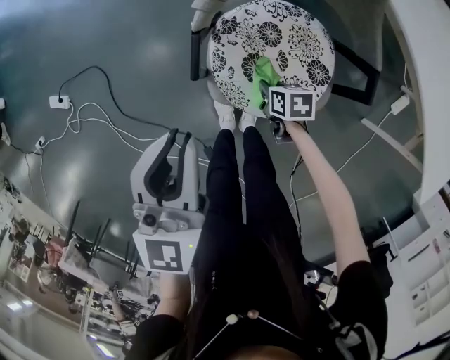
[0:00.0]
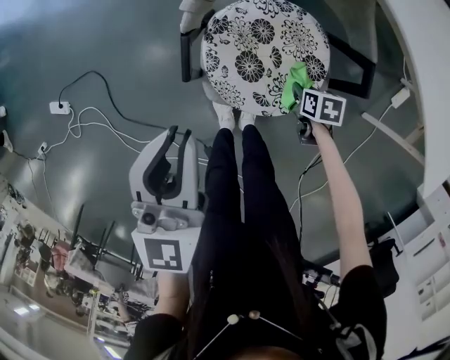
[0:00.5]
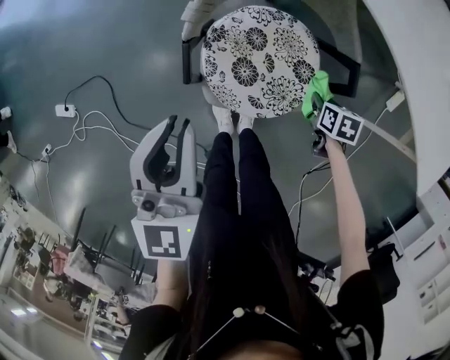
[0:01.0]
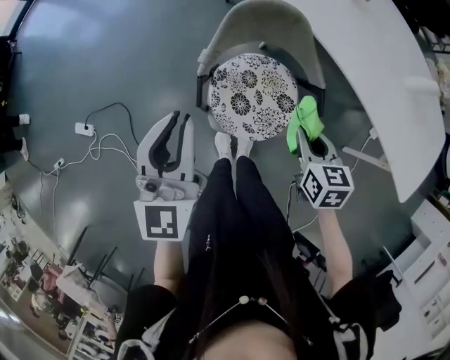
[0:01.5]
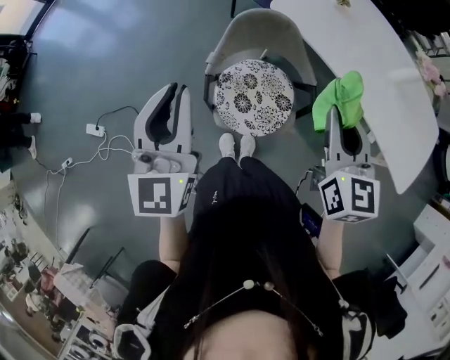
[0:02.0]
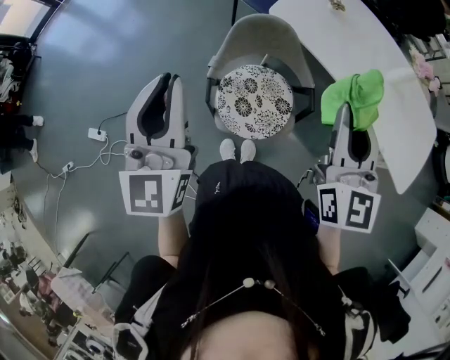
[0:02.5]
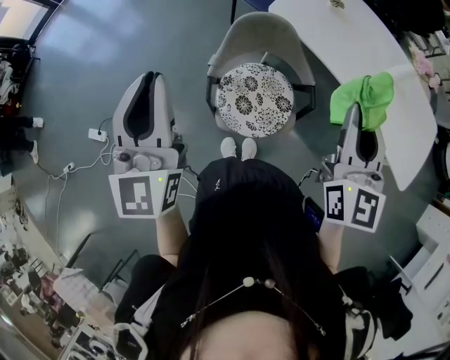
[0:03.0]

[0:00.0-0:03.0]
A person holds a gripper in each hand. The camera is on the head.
0:00.0 to 0:01.5: The left gripper shifts some 20 cm upward; the right gripper travels upward by about 40 cm, and changes its angle by about 30 degrees.
0:01.5 to 0:03.0: The right gripper shifts roughly 30 cm upward, and points its fingers approximately 40 degrees further upward, while the left gripper moves upward, approximately 15 cm.

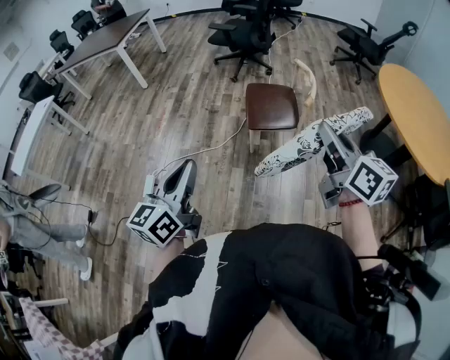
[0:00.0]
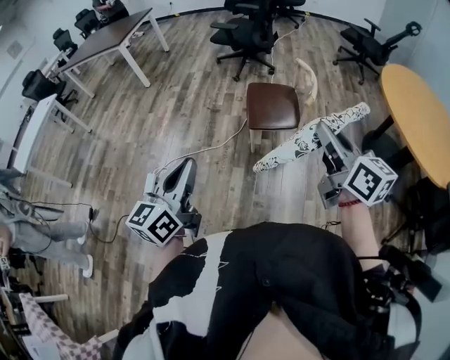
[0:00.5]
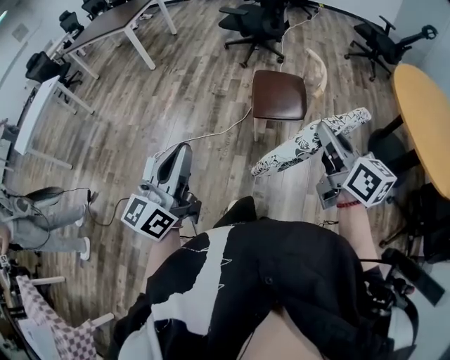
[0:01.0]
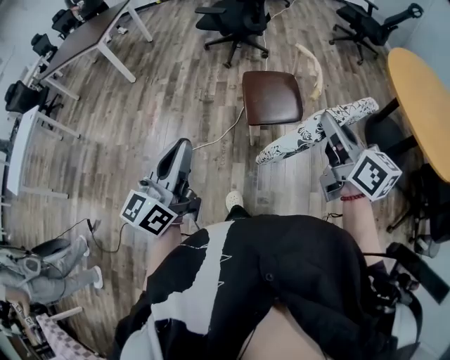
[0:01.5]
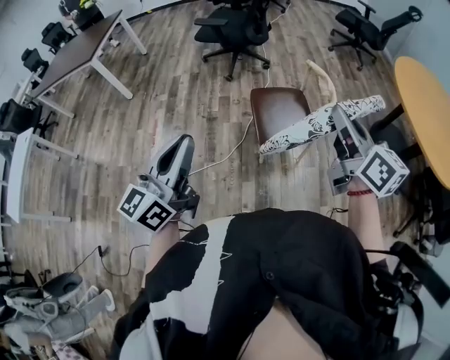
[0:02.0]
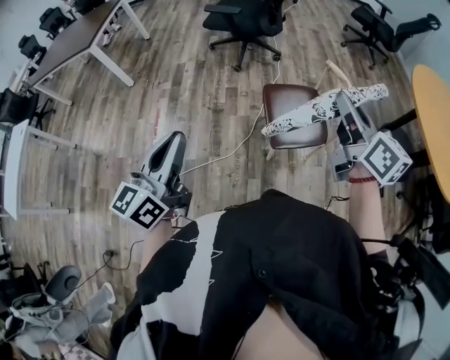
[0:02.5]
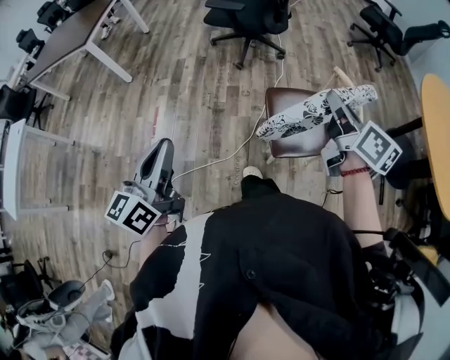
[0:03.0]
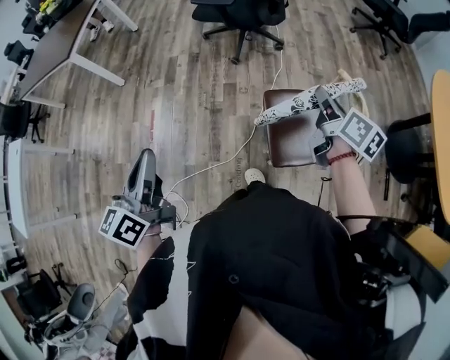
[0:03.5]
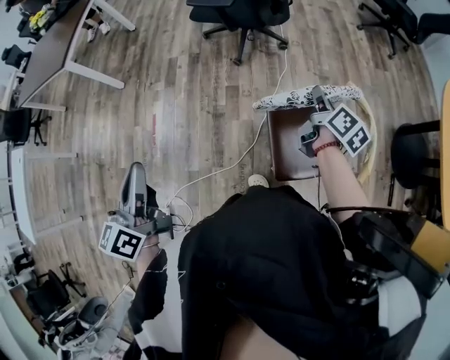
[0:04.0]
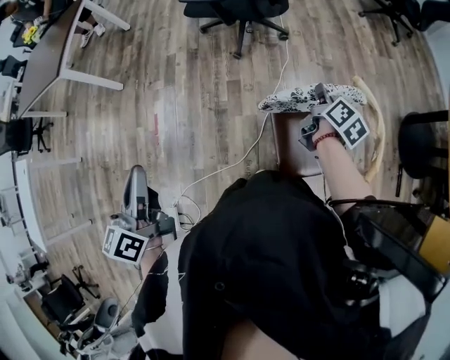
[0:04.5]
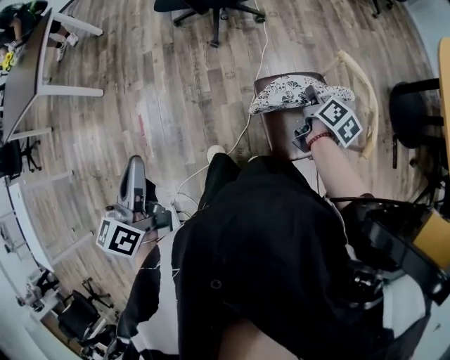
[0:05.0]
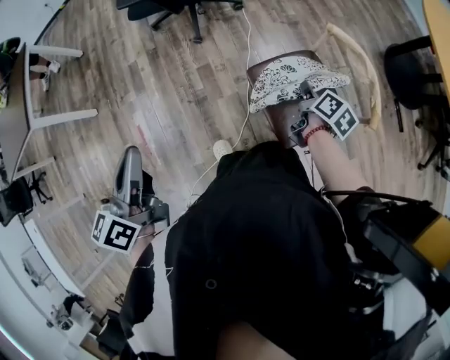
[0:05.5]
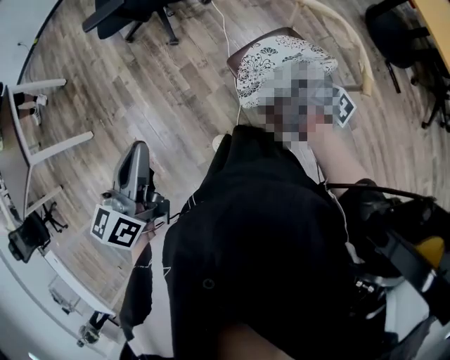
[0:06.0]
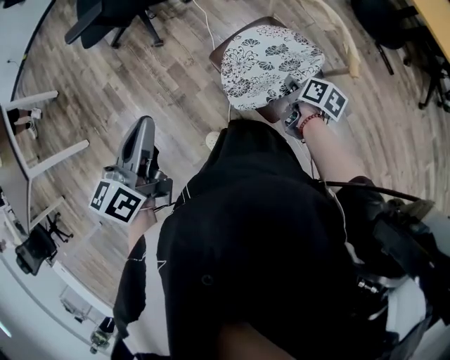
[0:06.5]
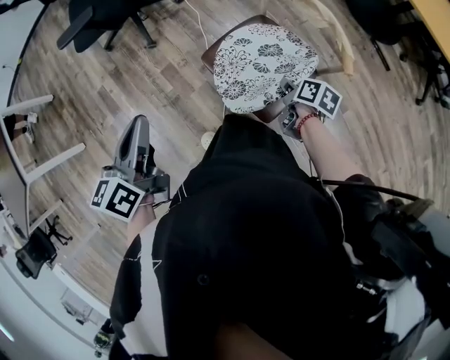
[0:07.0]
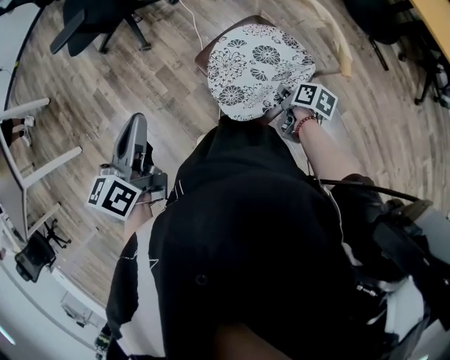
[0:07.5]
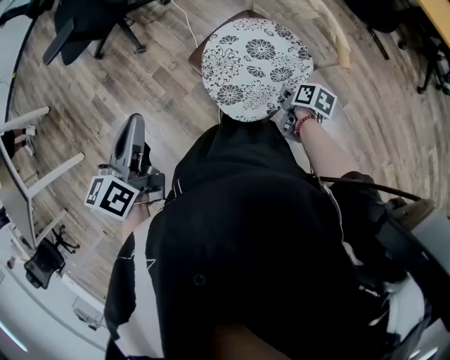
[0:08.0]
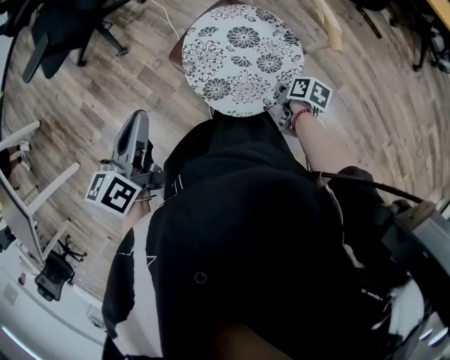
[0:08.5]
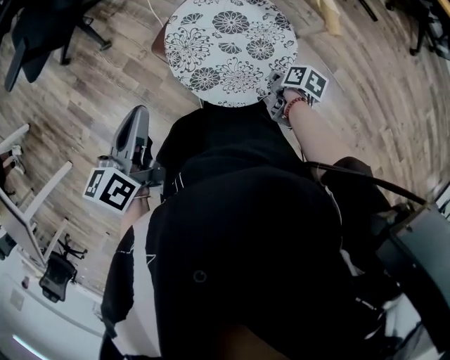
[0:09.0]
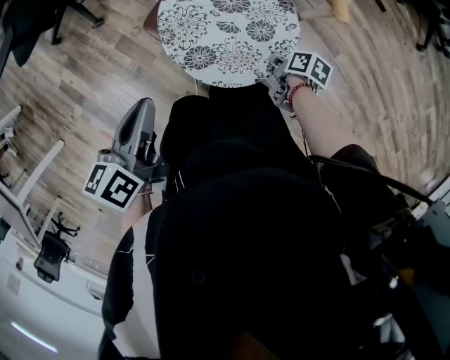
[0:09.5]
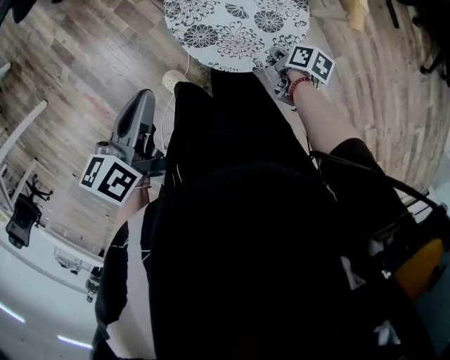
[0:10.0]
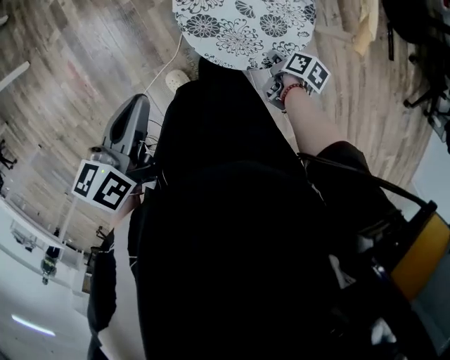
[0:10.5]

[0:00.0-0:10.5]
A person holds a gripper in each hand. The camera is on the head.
0:00.0 to 0:02.0: Both grippers travel together forward, approximately 25 cm.
0:02.0 to 0:04.0: The right gripper goes about 50 cm forward and downward, and changes its angle by roughly 40 degrees; the left gripper heads forward and to the left, covering roughly 35 cm, and rotates about 30 degrees.
0:04.0 to 0:06.5: The left gripper shifts by roughly 25 cm, and changes its angle by about 50 degrees, while the right gripper heads downward, covering about 20 cm, and changes its angle by approximately 40 degrees.
0:06.5 to 0:08.5: The right gripper moves downward, backward and to the right, about 20 cm, while the left gripper moves downward and to the right, about 15 cm.
0:08.5 to 0:10.5: The left gripper shifts about 15 cm backward, and rotates about 20 degrees, while the right gripper changes place by some 5 cm.

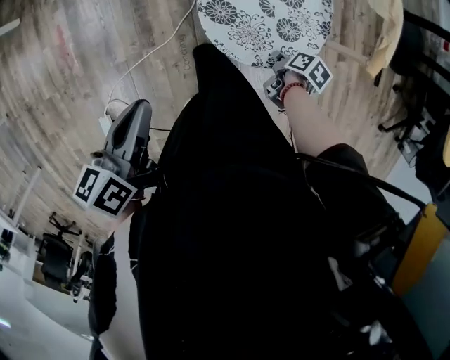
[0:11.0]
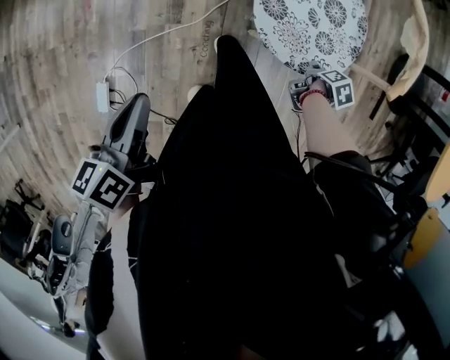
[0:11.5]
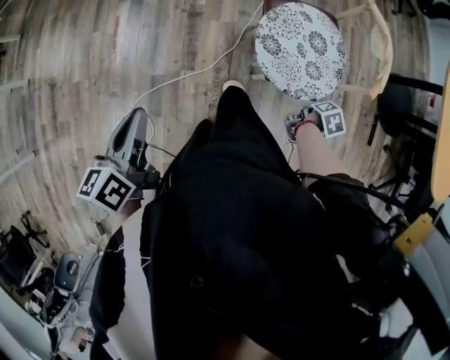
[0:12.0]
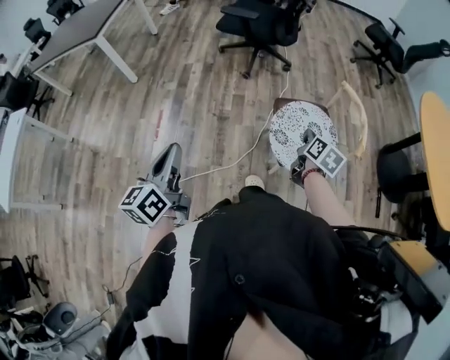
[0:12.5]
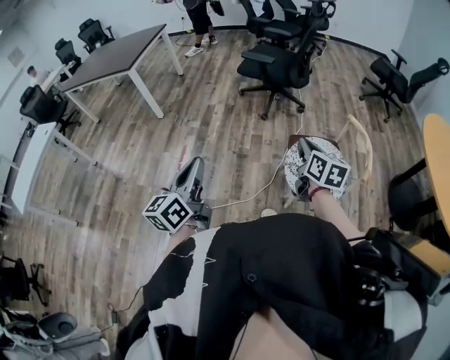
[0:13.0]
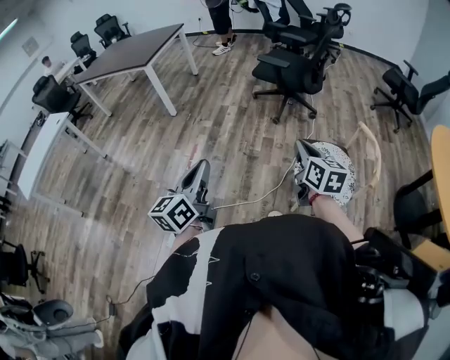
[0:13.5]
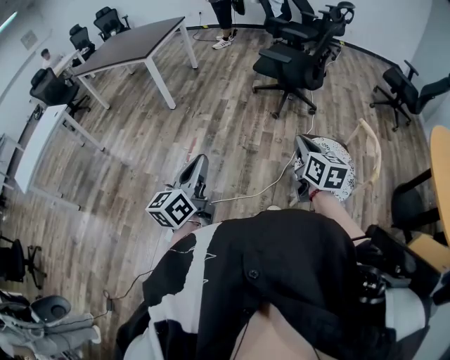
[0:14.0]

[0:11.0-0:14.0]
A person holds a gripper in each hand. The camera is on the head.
0:11.0 to 0:12.5: The left gripper is displaced upward, backward and to the left by roughly 30 cm, and rotates roughly 40 degrees. The right gripper moves upward, approximately 35 cm, points its fingers approximately 40 degrees further upward, and opens and closes again.
0:12.5 to 0:14.0: The left gripper heads backward, covering approximately 5 cm; the right gripper shifts about 25 cm to the left and upward, and swivels about 40 degrees.

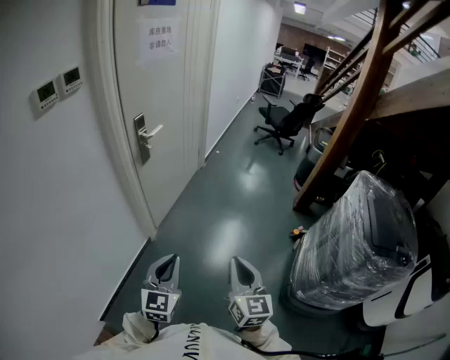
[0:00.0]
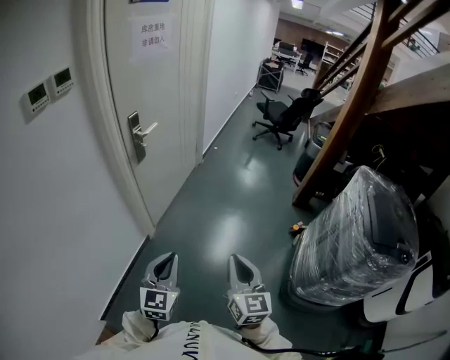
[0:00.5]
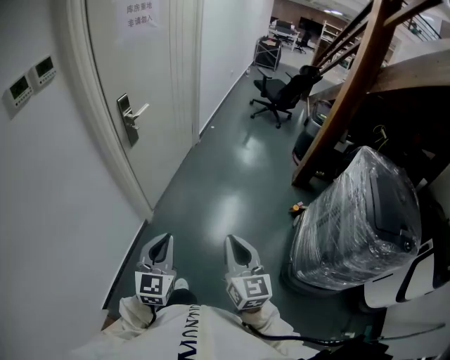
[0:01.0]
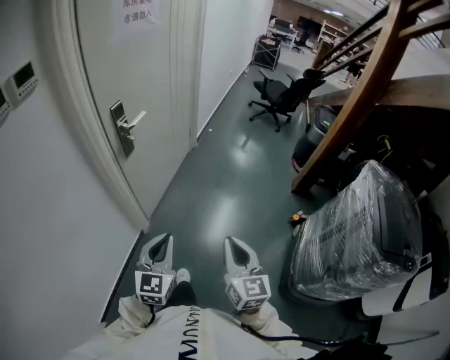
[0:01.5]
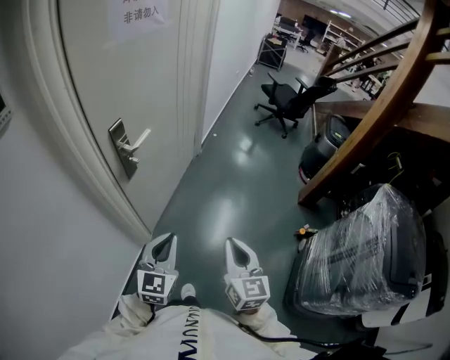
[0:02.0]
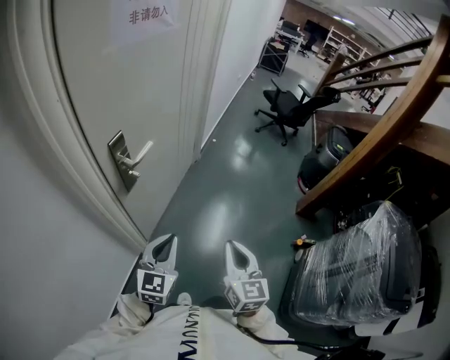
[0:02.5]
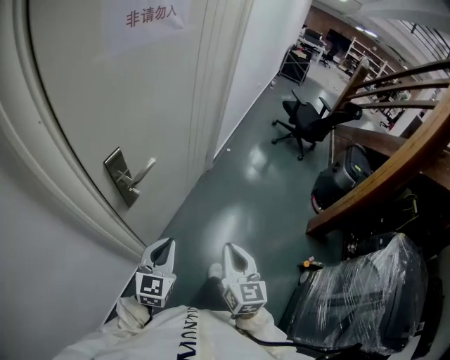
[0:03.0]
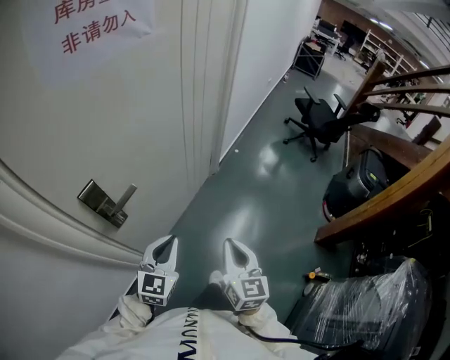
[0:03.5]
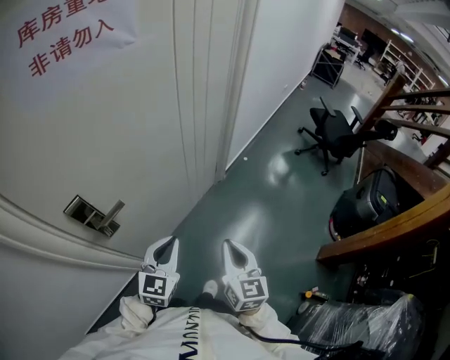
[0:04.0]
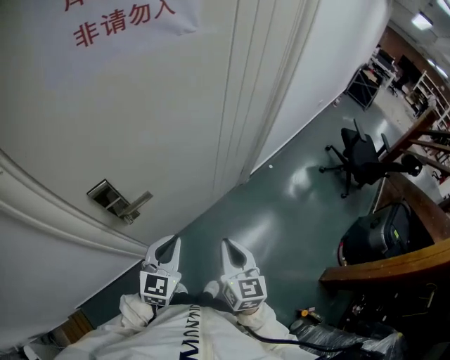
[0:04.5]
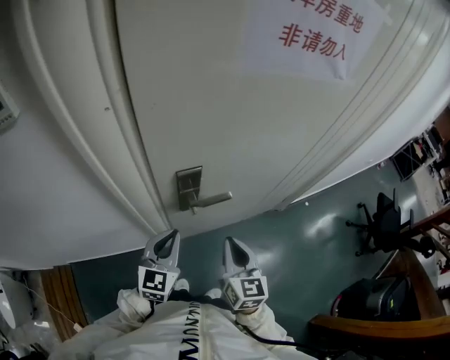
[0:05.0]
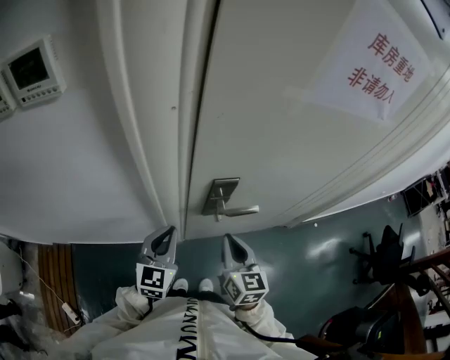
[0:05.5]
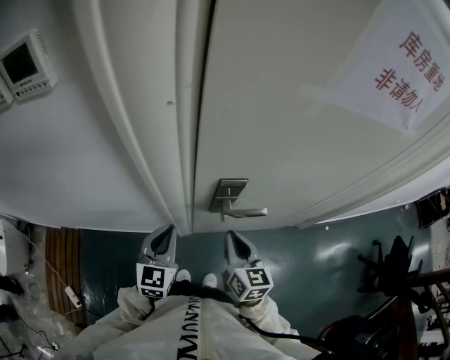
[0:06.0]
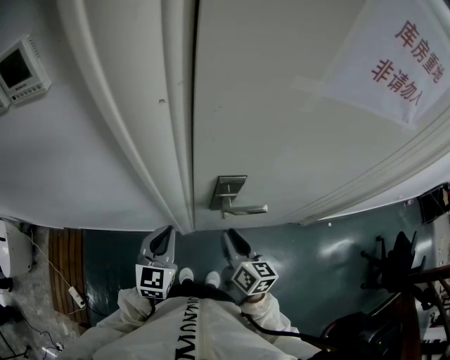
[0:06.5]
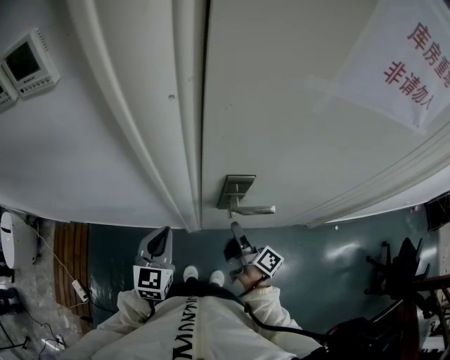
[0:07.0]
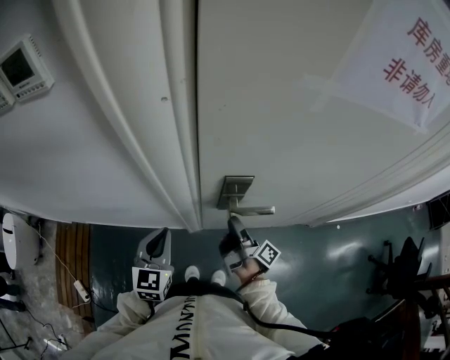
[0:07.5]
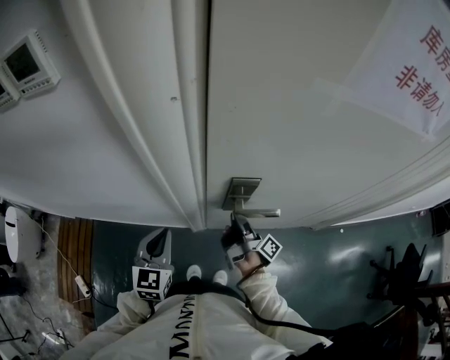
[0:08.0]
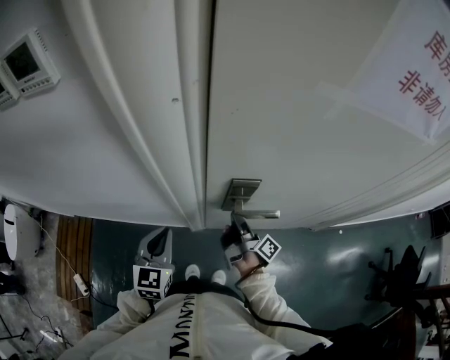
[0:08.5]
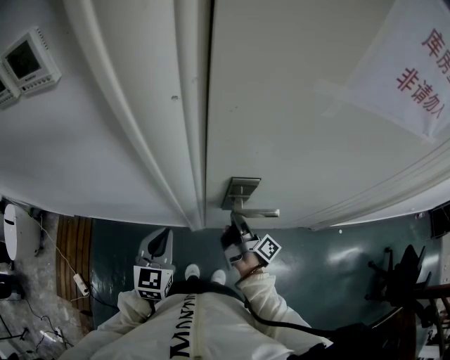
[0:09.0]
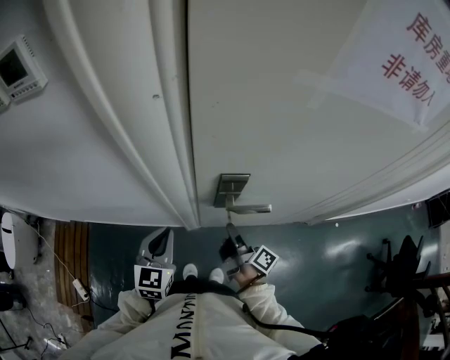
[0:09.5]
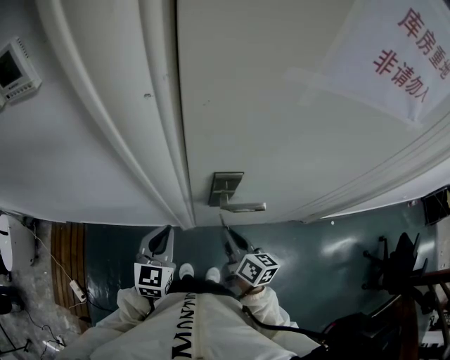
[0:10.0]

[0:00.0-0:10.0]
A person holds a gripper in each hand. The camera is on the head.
0:00.0 to 0:02.0: The grippers both shift forward by roughly 30 cm.
0:02.0 to 0:04.0: The grippers both shift forward by approximately 35 cm.
0:04.0 to 0:06.0: The left gripper ends up about 35 cm from where it was, and swivels some 50 degrees. Meanwhile the right gripper changes place by some 35 cm, and turns by roughly 50 degrees.
0:06.0 to 0:08.0: The right gripper heads downward and forward, covering some 10 cm, rotates around the line of its fingers by some 80 degrees, clockwise from behind, and opens up.
0:08.0 to 0:10.0: The right gripper heads backward, covering about 5 cm, rotates around the line of its fingers by roughly 50 degrees, counterclockwise from behind, and closes.
